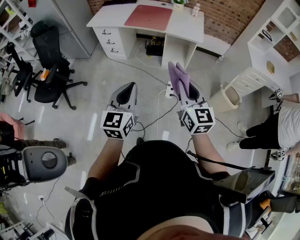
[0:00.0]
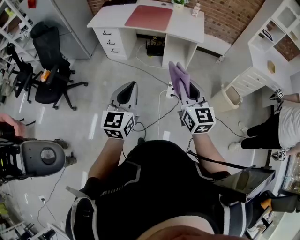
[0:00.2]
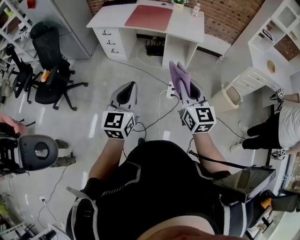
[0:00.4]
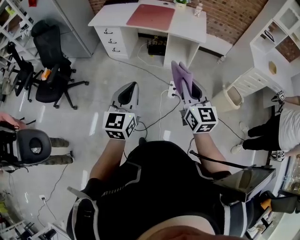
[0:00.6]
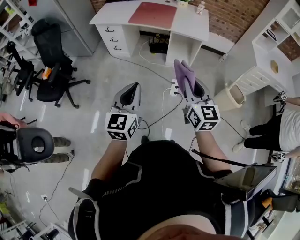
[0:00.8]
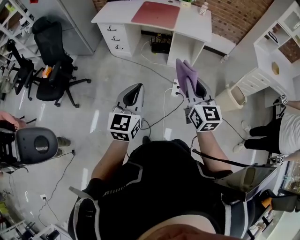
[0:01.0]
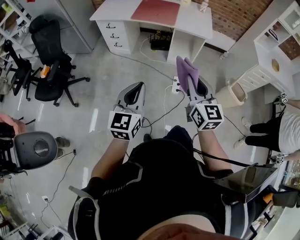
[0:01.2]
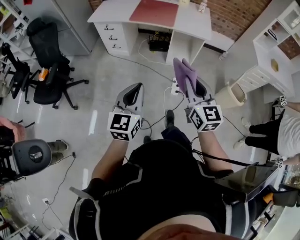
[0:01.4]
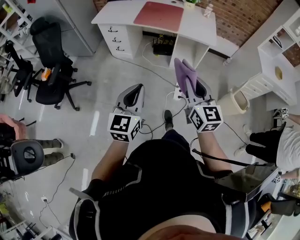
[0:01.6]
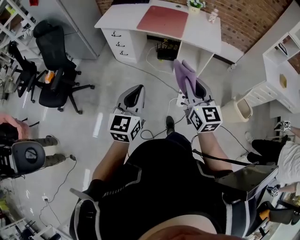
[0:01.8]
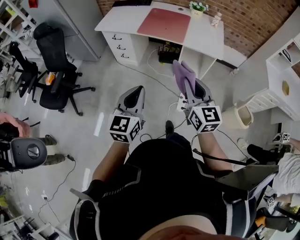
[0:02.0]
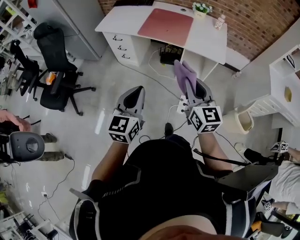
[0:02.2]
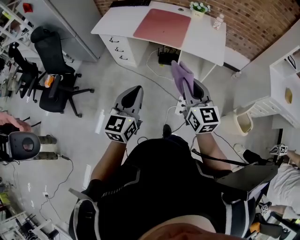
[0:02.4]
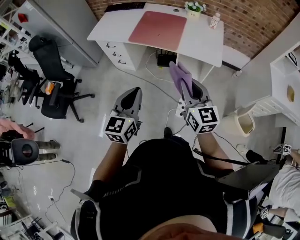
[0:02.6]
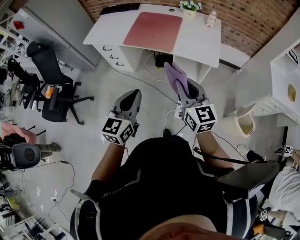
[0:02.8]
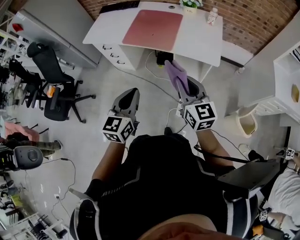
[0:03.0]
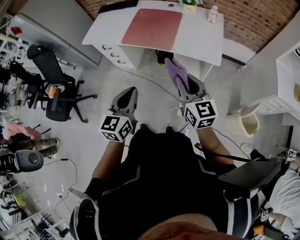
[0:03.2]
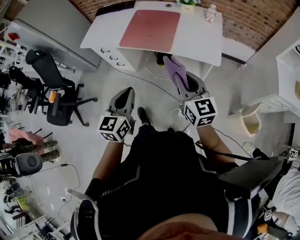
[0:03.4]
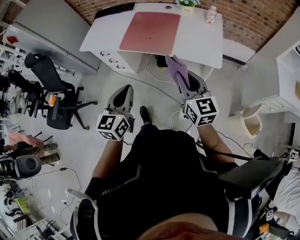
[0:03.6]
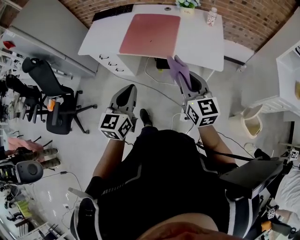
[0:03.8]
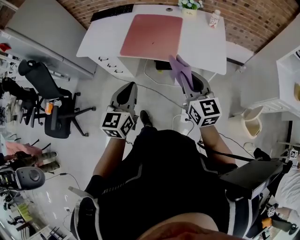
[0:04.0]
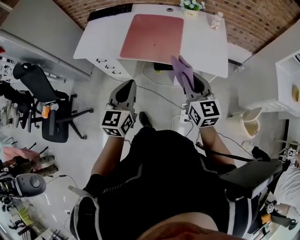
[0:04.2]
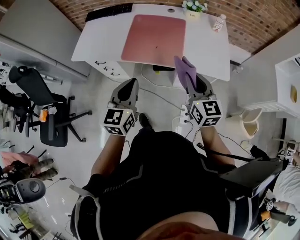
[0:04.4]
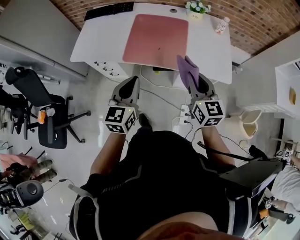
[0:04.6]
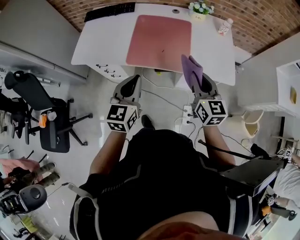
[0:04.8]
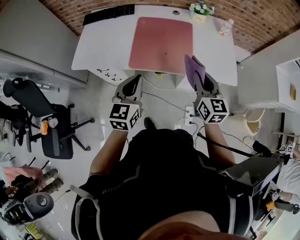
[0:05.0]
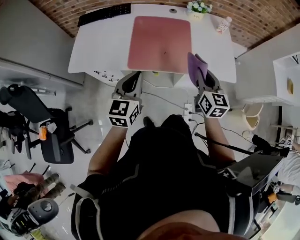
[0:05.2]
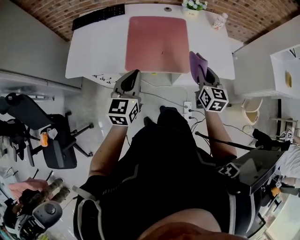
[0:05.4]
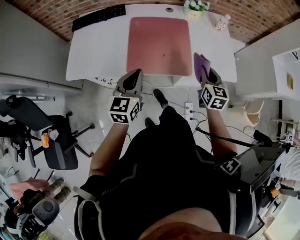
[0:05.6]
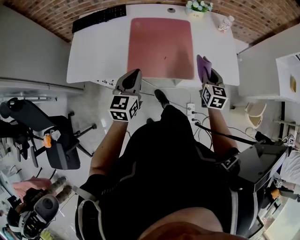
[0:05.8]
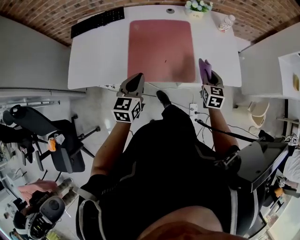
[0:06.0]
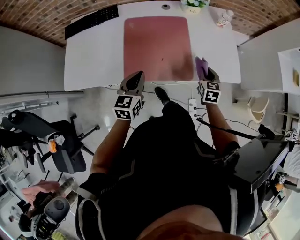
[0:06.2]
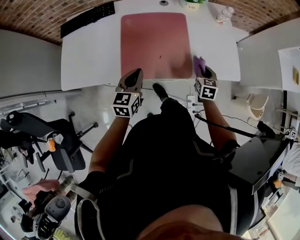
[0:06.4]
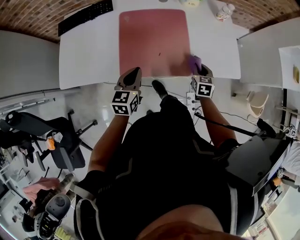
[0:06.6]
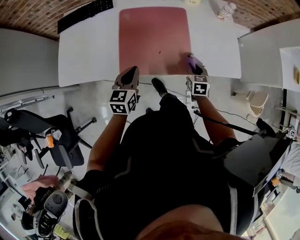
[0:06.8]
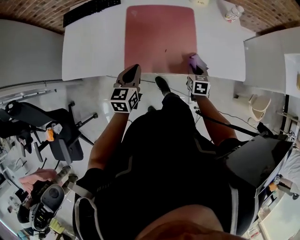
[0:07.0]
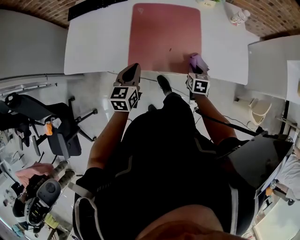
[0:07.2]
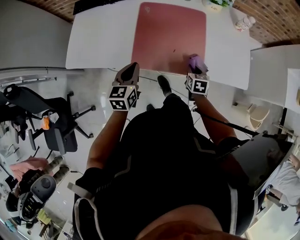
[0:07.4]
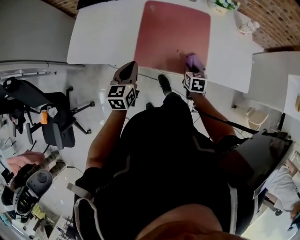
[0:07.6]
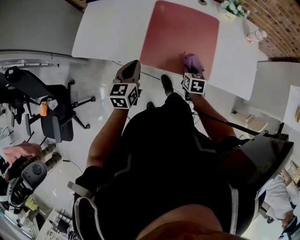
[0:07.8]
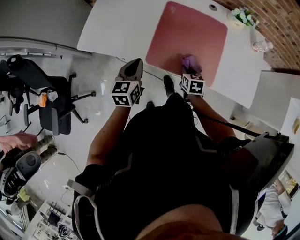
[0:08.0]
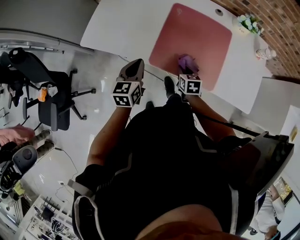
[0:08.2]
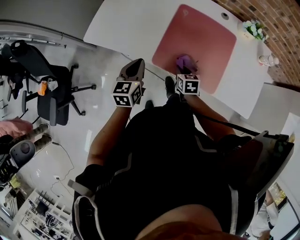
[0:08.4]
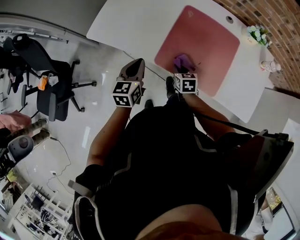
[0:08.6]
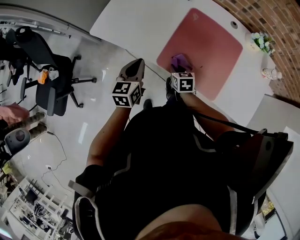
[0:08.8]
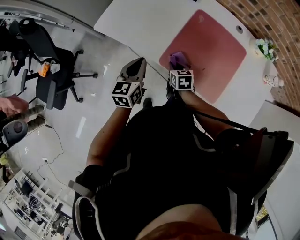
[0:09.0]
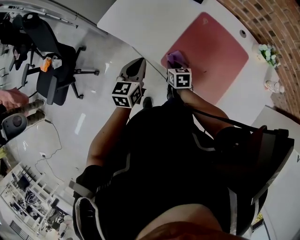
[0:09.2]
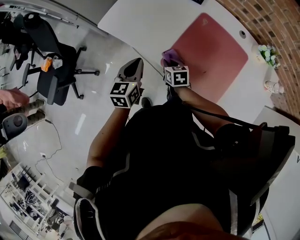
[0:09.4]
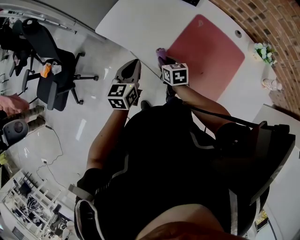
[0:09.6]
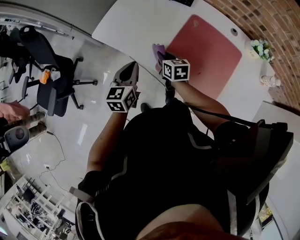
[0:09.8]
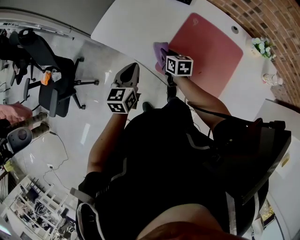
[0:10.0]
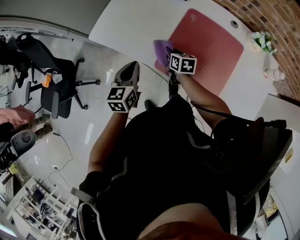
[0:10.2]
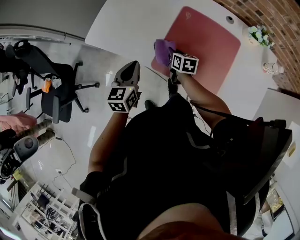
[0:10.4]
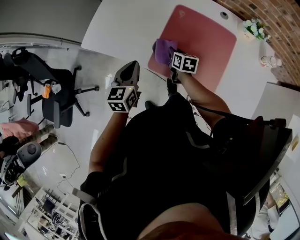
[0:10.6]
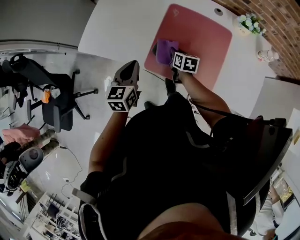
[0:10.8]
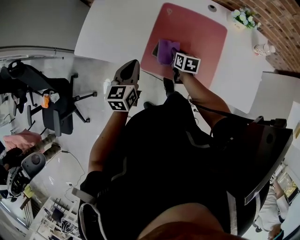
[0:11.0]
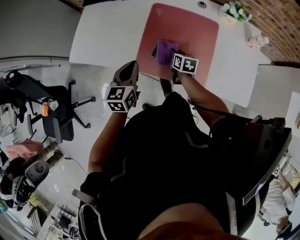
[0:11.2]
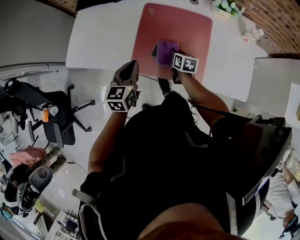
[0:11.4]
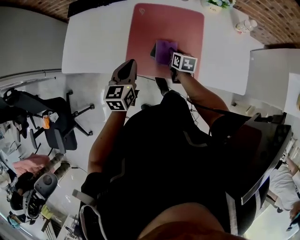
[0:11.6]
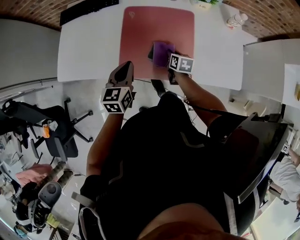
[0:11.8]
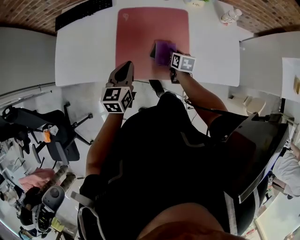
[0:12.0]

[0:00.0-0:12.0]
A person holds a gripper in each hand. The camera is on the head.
0:00.0 to 0:01.6: Both grippers move forward and to the left, approximately 10 cm.
0:01.6 to 0:03.0: The two grippers go about 30 cm forward and to the right.
0:03.0 to 0:04.4: The left gripper heads forward and to the left, covering approximately 25 cm, while the right gripper is displaced forward by roughly 20 cm.
0:04.4 to 0:06.0: The right gripper moves forward and downward, some 25 cm, and turns by approximately 30 degrees; the left gripper shifts roughly 25 cm forward, to the left and downward.
0:06.0 to 0:07.6: The left gripper goes about 5 cm to the left. Meanwhile the right gripper goes approximately 15 cm to the left and downward, and turns by approximately 20 degrees.
0:07.6 to 0:09.0: The left gripper moves about 10 cm, and swivels roughly 20 degrees. The right gripper shifts by about 20 cm, and swivels about 30 degrees.
0:09.0 to 0:10.4: The right gripper travels forward and to the right by about 10 cm, and turns by approximately 20 degrees.
0:10.4 to 0:12.0: The left gripper moves approximately 15 cm, and rotates approximately 30 degrees; the right gripper moves approximately 25 cm, and turns by about 30 degrees.

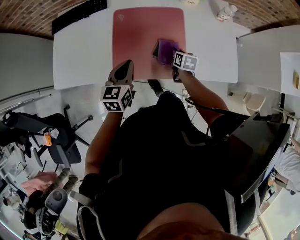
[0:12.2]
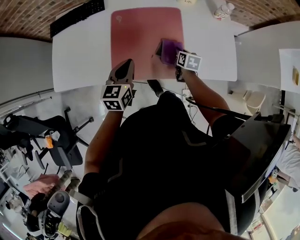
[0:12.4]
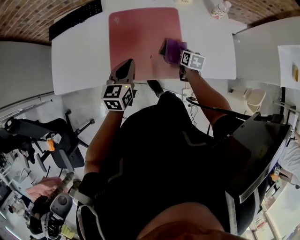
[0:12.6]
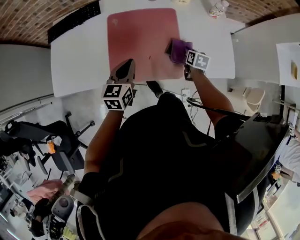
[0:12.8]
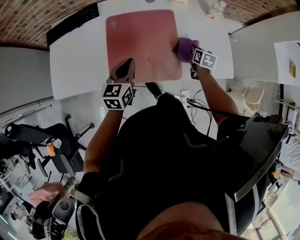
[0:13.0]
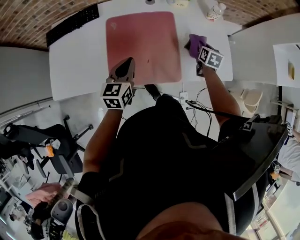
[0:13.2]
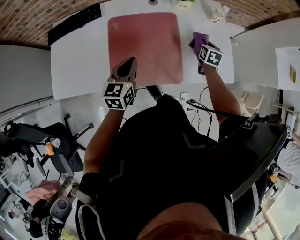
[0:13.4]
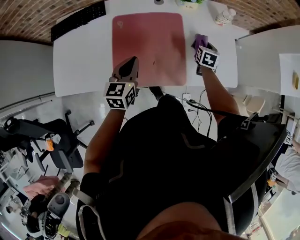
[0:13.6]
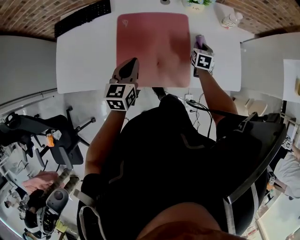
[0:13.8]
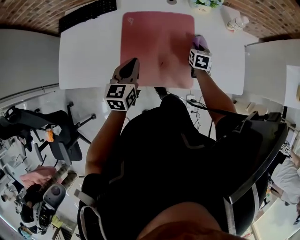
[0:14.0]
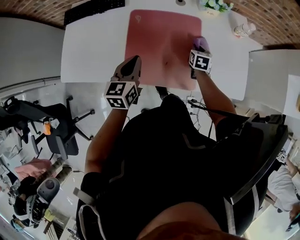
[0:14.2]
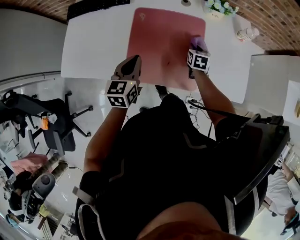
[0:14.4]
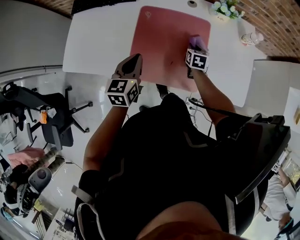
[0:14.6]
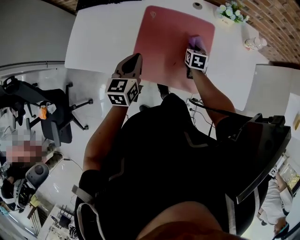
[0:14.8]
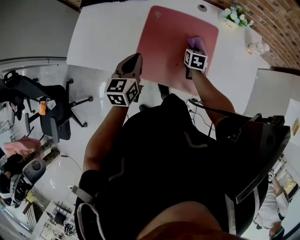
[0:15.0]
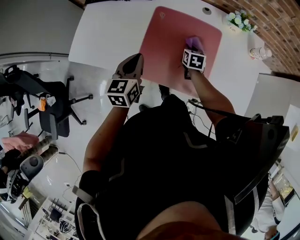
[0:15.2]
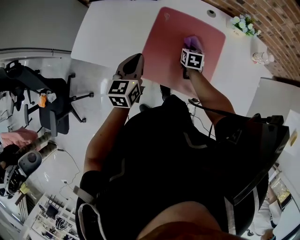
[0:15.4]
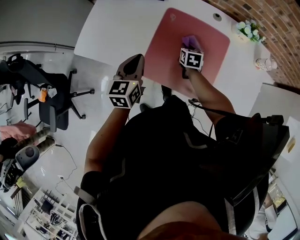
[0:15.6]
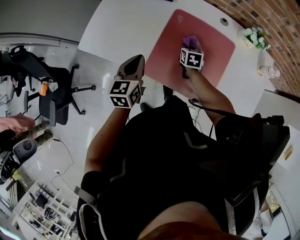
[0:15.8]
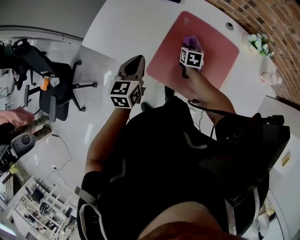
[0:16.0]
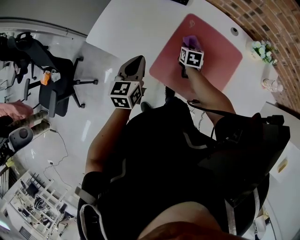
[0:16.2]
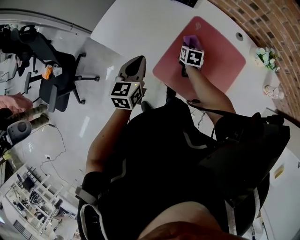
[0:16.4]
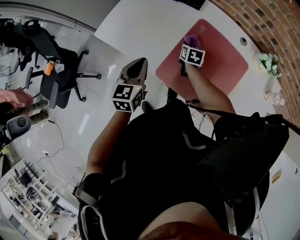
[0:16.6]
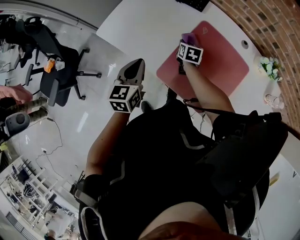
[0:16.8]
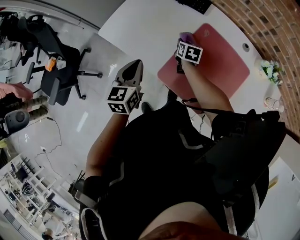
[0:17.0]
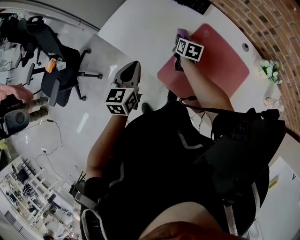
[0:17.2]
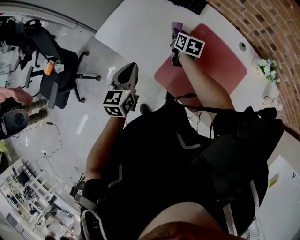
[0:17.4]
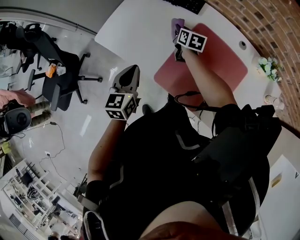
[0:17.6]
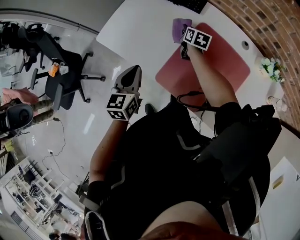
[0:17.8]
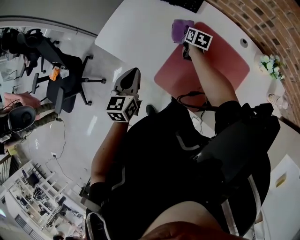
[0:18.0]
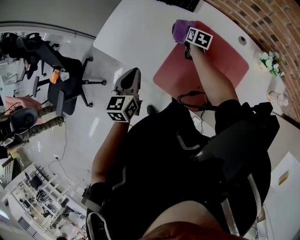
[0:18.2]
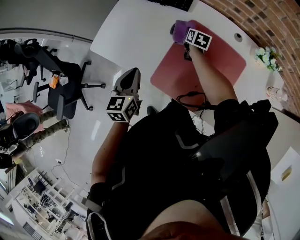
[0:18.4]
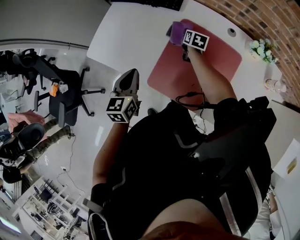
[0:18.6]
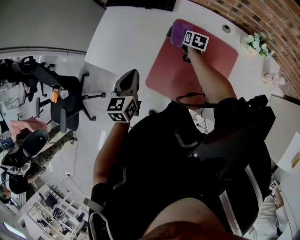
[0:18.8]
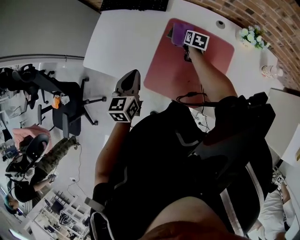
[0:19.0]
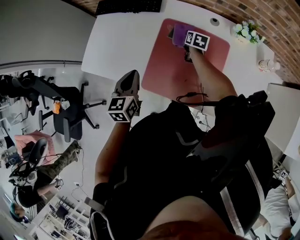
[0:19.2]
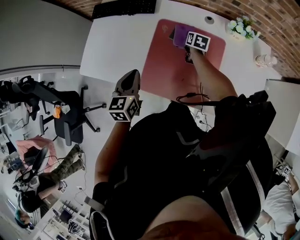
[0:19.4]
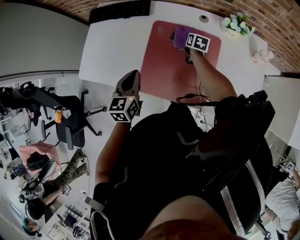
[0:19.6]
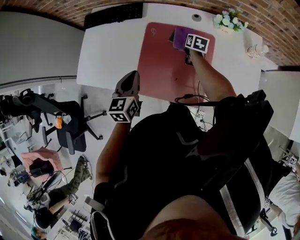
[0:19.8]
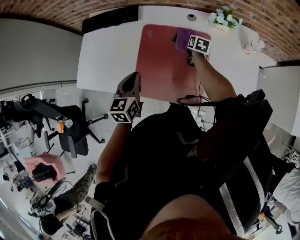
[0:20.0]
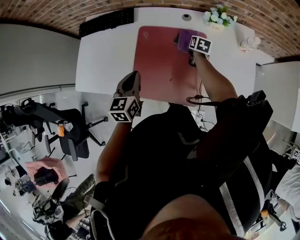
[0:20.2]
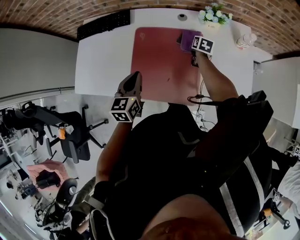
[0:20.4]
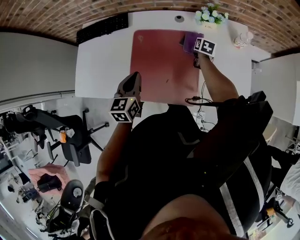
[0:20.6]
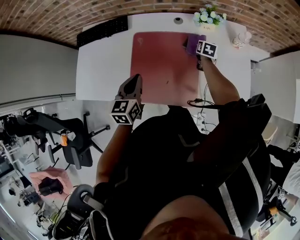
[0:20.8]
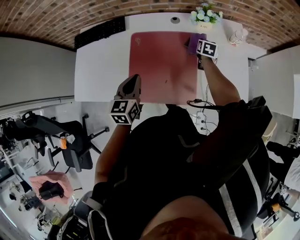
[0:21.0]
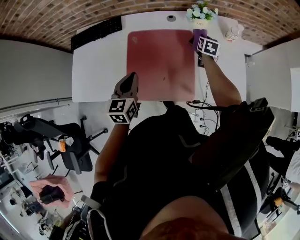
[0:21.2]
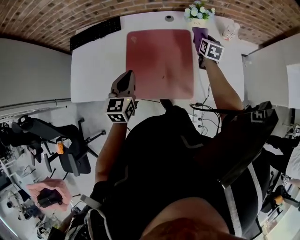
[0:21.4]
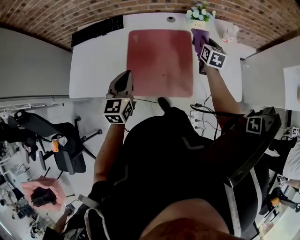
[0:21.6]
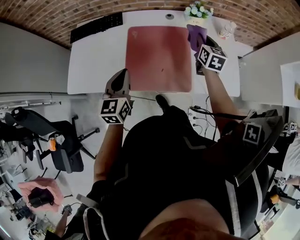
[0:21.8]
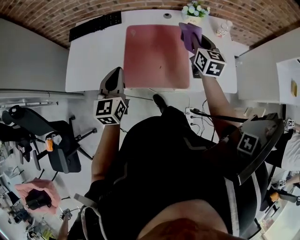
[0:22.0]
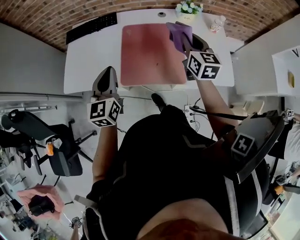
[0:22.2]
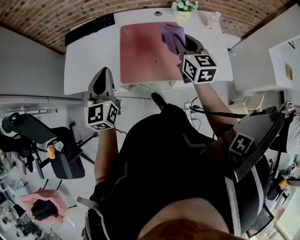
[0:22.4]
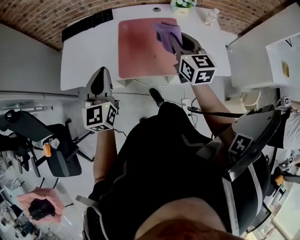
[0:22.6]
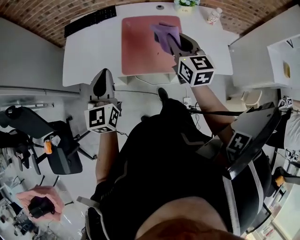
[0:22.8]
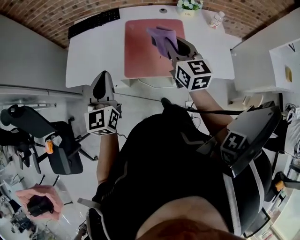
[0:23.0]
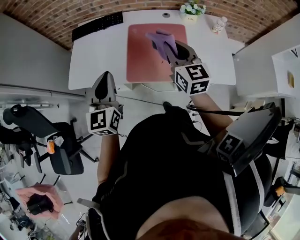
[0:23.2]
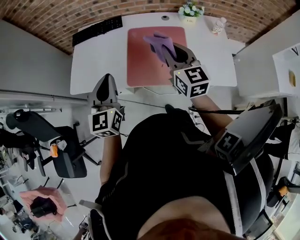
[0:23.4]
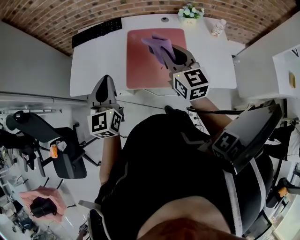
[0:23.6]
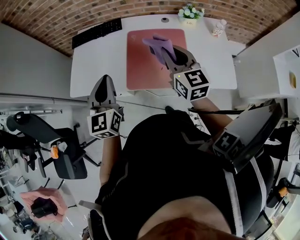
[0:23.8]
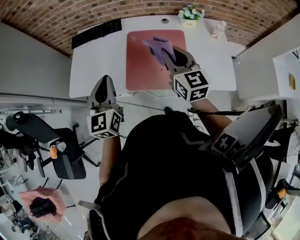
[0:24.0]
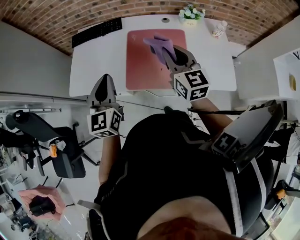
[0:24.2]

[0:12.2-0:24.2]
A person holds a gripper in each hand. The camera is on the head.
0:12.2 to 0:13.8: The right gripper shifts about 15 cm forward and to the right, and swivels some 20 degrees.
0:13.8 to 0:15.2: The left gripper is displaced to the left by about 10 cm. The right gripper goes some 20 cm to the left, and swivels roughly 20 degrees.
0:15.2 to 0:16.6: The right gripper goes about 20 cm to the left; the left gripper is displaced to the left by approximately 10 cm.
0:16.6 to 0:18.2: The right gripper is displaced forward and to the right by some 10 cm.
0:18.2 to 0:19.8: The left gripper moves to the right, some 15 cm, and turns by roughly 20 degrees. The right gripper is displaced to the right by approximately 25 cm, and changes its angle by approximately 20 degrees.
0:19.8 to 0:21.2: The right gripper heads to the right, covering about 20 cm; the left gripper shifts approximately 5 cm to the right.
0:21.2 to 0:22.6: The right gripper goes roughly 40 cm backward, upward and to the left, and turns by some 40 degrees. The left gripper shifts roughly 20 cm backward, upward and to the left, and rotates about 20 degrees.
0:22.6 to 0:24.2: The grippers move only a little.
